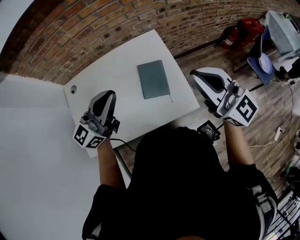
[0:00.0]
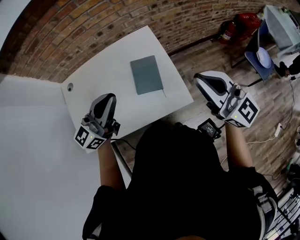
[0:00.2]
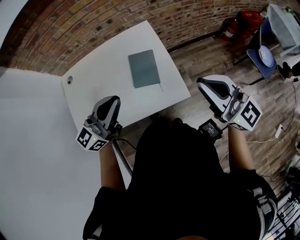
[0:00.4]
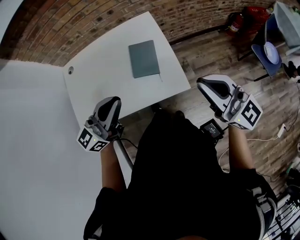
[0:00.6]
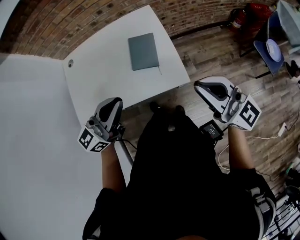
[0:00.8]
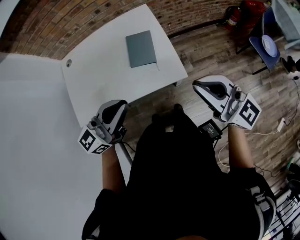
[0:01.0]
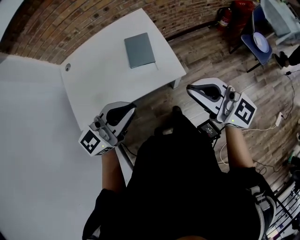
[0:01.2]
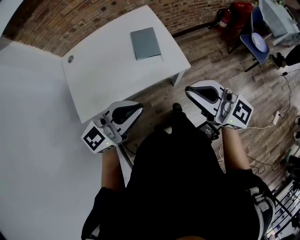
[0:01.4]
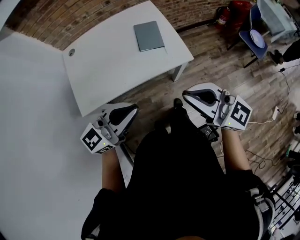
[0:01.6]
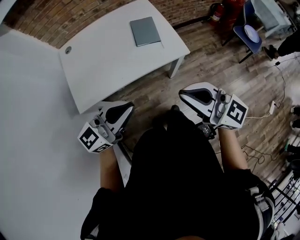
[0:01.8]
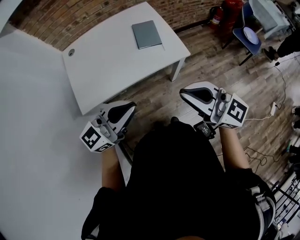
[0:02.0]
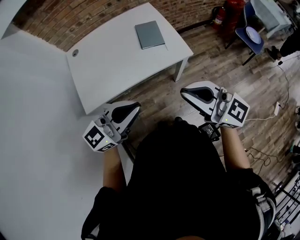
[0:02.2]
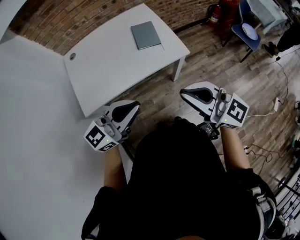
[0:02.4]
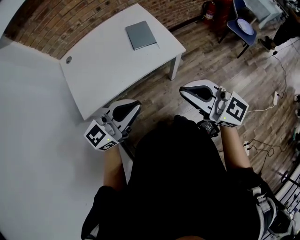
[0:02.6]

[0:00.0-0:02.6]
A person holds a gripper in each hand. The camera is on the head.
0:00.0 to 0:01.2: The left gripper goes about 25 cm backward and to the right. Meanwhile the right gripper shifts some 20 cm backward.
0:01.2 to 0:02.6: The two grippers go approximately 20 cm backward and to the left.

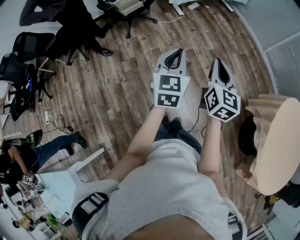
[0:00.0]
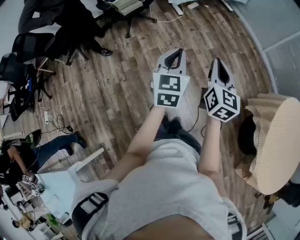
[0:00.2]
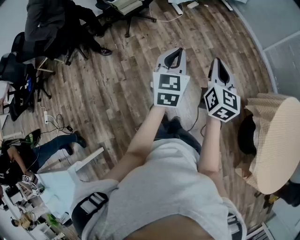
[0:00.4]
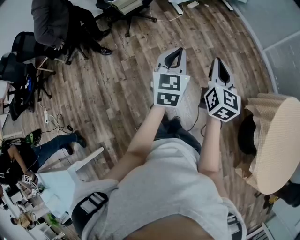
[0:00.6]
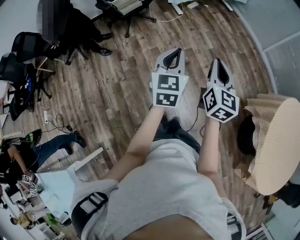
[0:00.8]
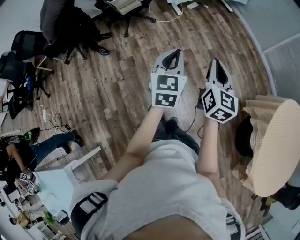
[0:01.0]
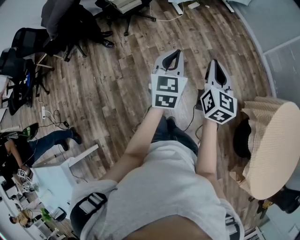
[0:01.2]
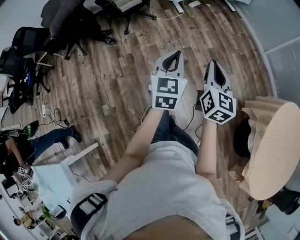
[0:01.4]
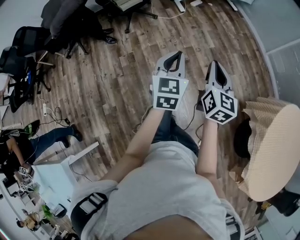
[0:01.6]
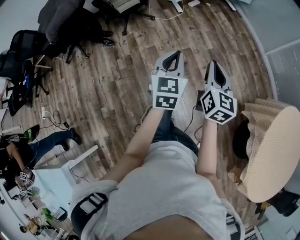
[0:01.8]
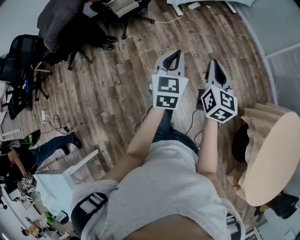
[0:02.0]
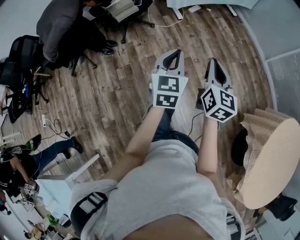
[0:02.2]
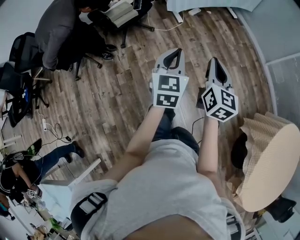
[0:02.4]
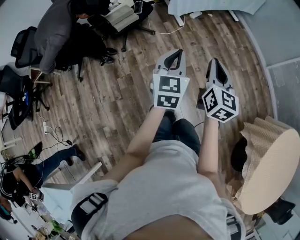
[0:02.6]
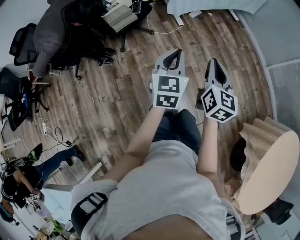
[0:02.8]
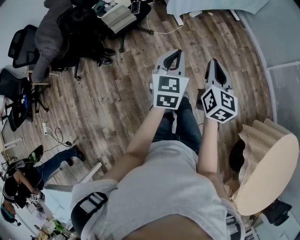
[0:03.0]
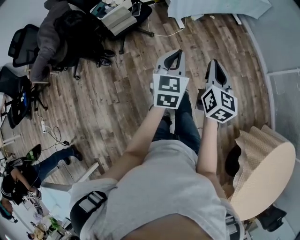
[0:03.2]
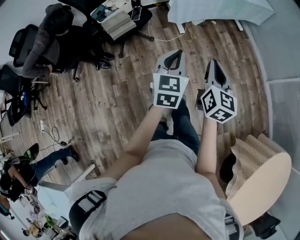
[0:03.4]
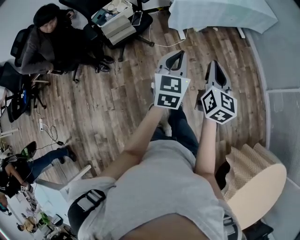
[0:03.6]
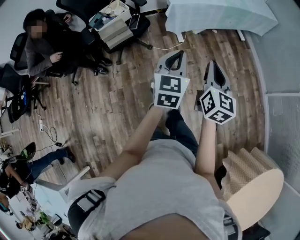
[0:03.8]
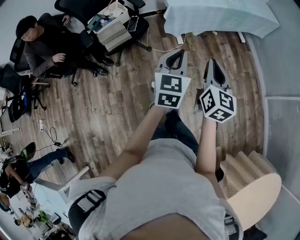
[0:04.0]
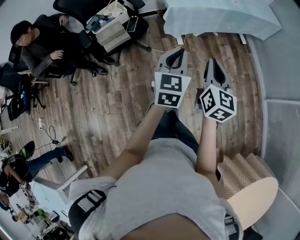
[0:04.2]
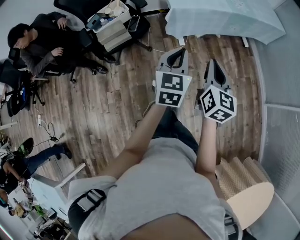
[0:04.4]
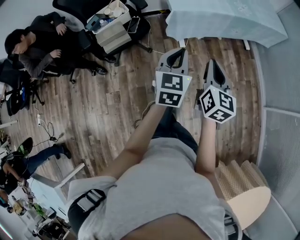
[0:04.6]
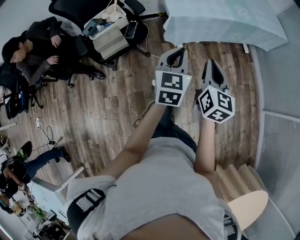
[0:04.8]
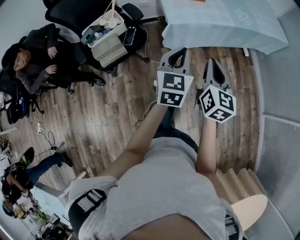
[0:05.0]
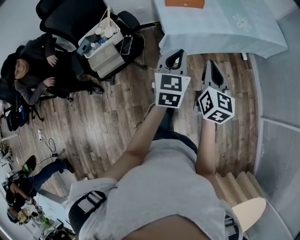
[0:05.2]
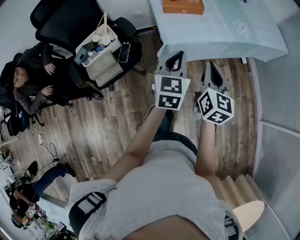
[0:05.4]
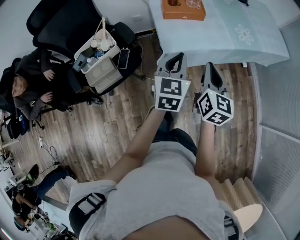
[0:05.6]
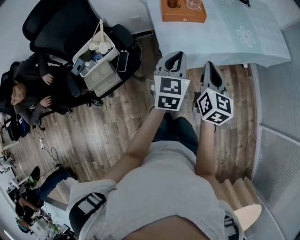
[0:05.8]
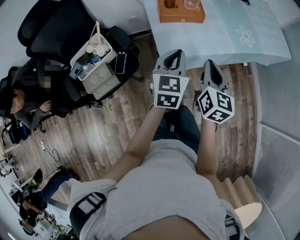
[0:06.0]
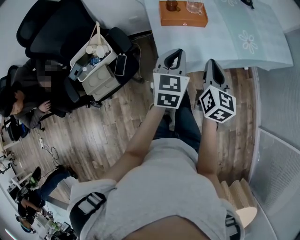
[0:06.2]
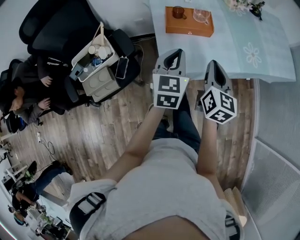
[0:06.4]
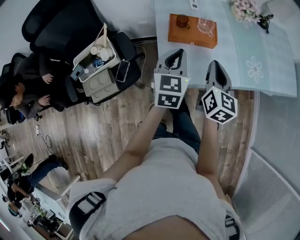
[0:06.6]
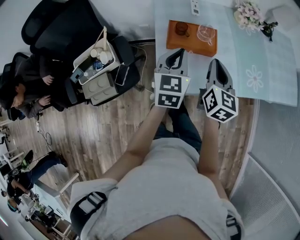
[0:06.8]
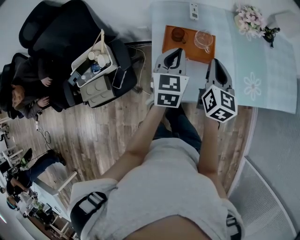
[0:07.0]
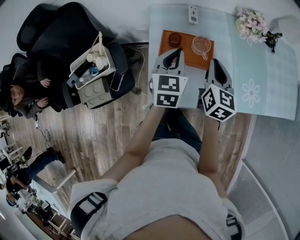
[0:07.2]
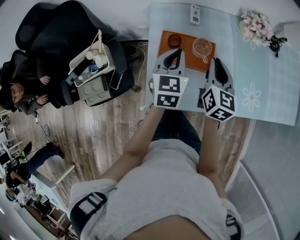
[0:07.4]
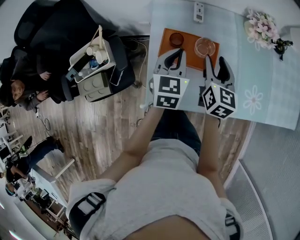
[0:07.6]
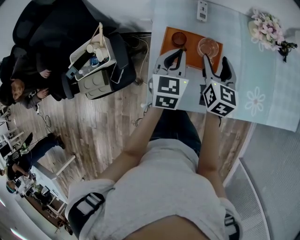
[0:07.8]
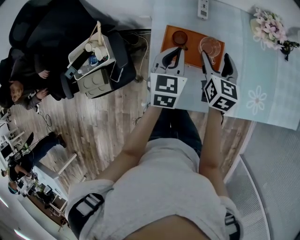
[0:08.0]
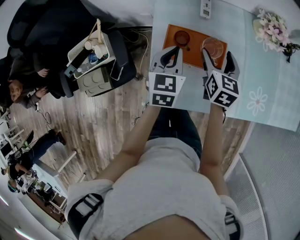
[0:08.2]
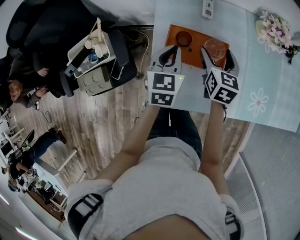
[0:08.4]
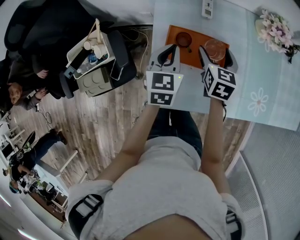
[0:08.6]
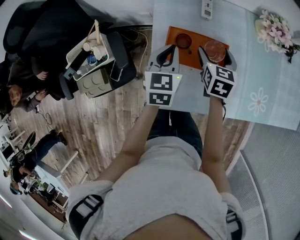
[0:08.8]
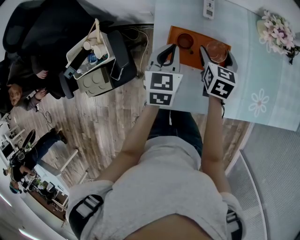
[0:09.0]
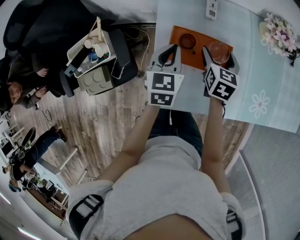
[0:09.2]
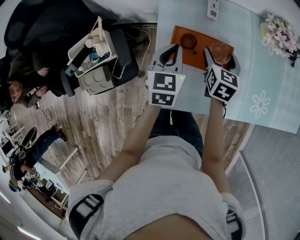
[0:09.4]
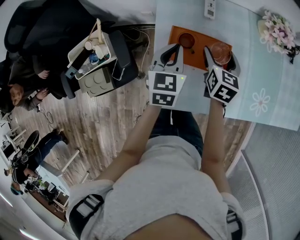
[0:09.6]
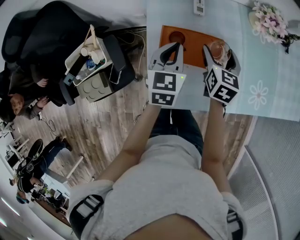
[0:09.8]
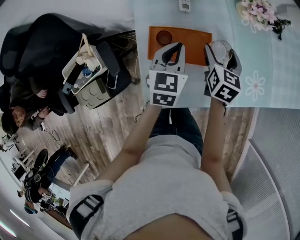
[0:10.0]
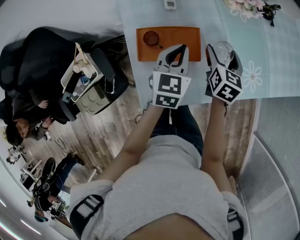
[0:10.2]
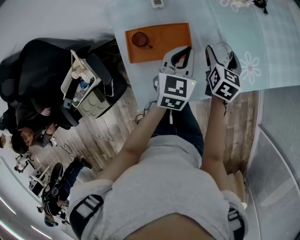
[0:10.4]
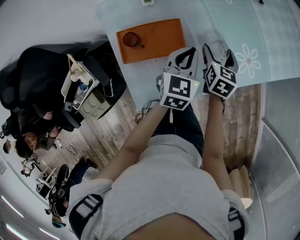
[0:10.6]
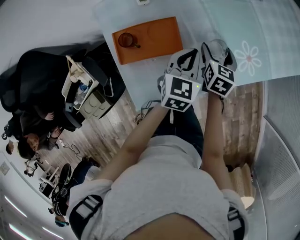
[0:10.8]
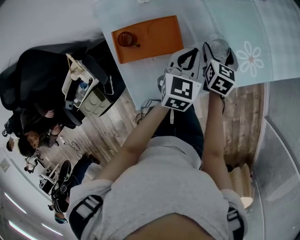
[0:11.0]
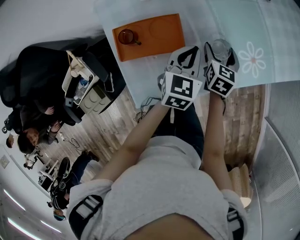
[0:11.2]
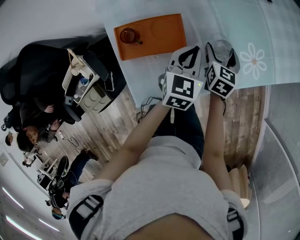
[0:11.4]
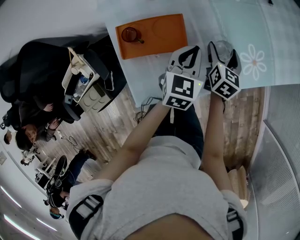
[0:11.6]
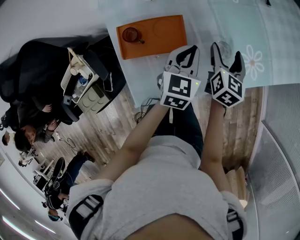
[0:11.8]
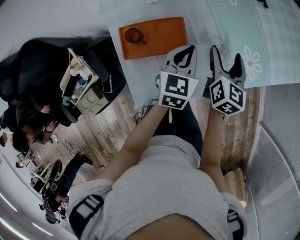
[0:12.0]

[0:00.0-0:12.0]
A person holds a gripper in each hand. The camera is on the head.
0:00.0 to 0:01.6: The left gripper ends up some 5 cm from where it was. Meanwhile the right gripper ends up some 5 cm from where it was.
0:01.6 to 0:03.0: Both grippers move forward, approximately 30 cm.
0:03.0 to 0:04.4: The grippers both shift forward by about 30 cm.
0:04.4 to 0:06.0: Both grippers are carried forward, some 40 cm.
0:06.0 to 0:07.6: The two grippers go about 35 cm forward. The right gripper opens up.
0:07.6 to 0:09.0: The left gripper is displaced to the left by approximately 5 cm, while the right gripper goes roughly 10 cm downward and forward, and opens.
0:09.0 to 0:10.4: Both grippers move to the right, roughly 20 cm. The right gripper swivels about 20 degrees, while the left gripper rotates some 30 degrees.
0:10.4 to 0:12.0: The right gripper shifts by roughly 5 cm.

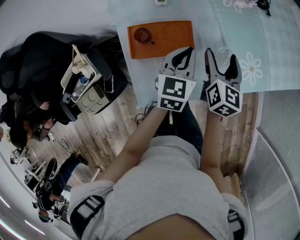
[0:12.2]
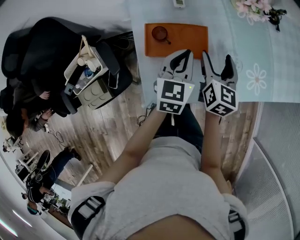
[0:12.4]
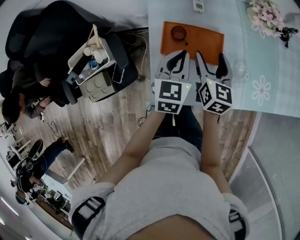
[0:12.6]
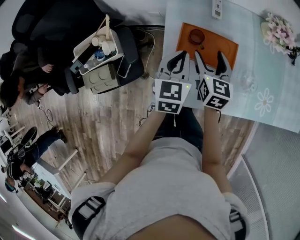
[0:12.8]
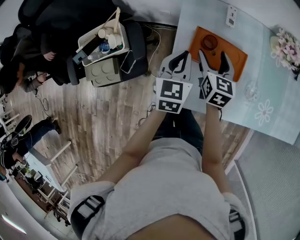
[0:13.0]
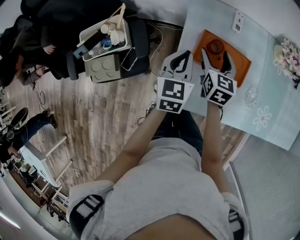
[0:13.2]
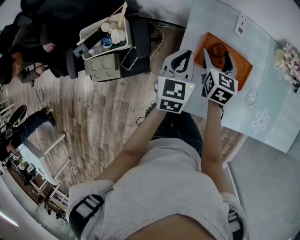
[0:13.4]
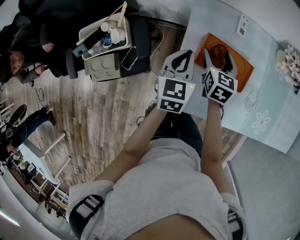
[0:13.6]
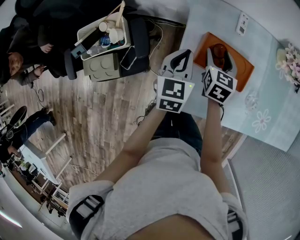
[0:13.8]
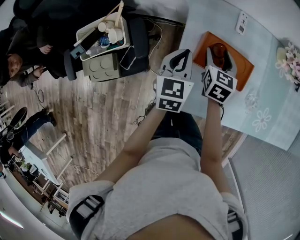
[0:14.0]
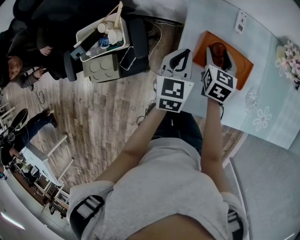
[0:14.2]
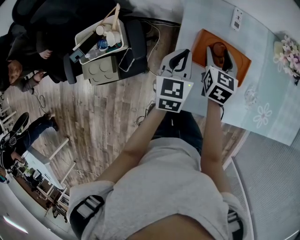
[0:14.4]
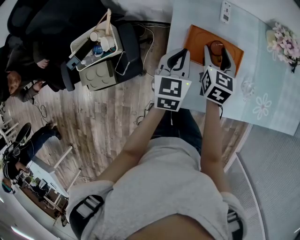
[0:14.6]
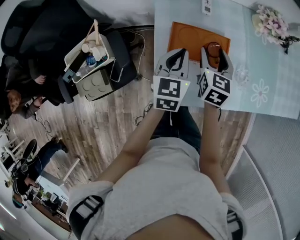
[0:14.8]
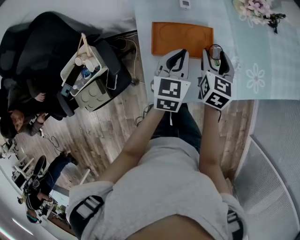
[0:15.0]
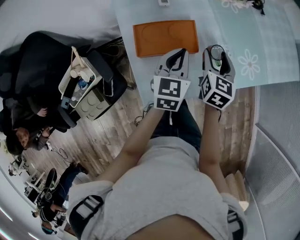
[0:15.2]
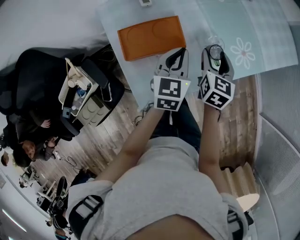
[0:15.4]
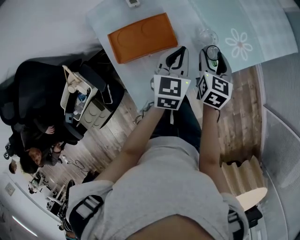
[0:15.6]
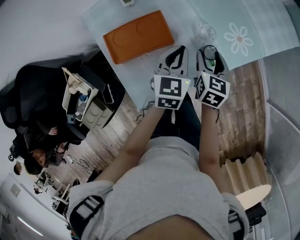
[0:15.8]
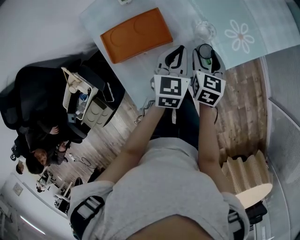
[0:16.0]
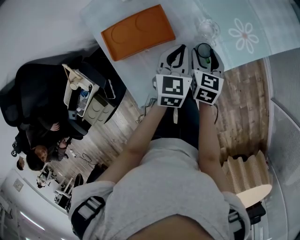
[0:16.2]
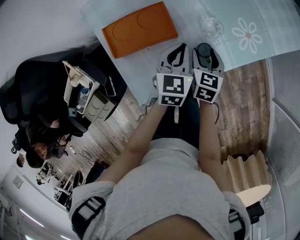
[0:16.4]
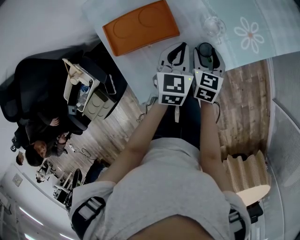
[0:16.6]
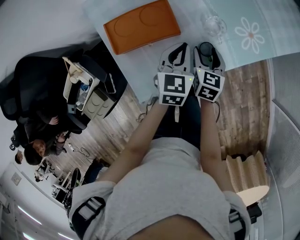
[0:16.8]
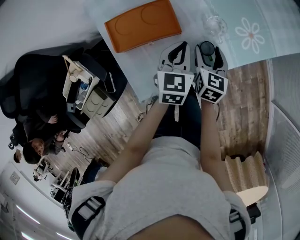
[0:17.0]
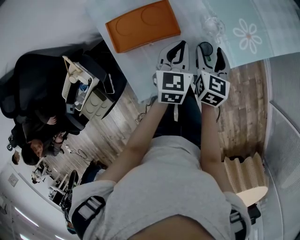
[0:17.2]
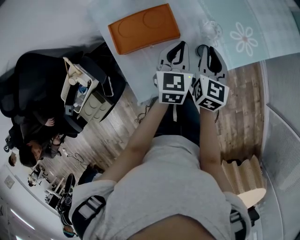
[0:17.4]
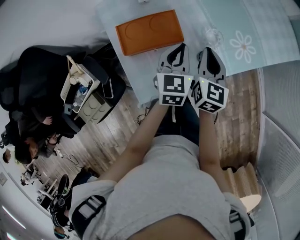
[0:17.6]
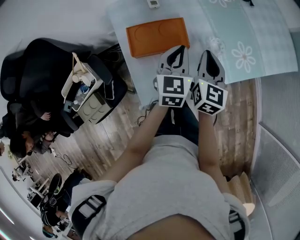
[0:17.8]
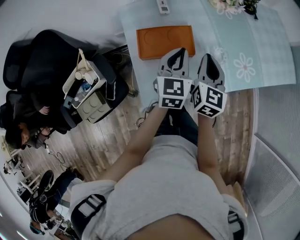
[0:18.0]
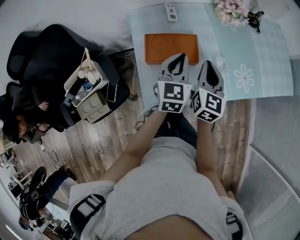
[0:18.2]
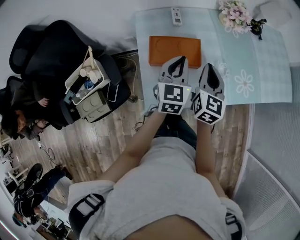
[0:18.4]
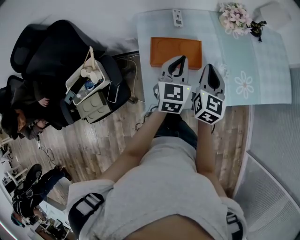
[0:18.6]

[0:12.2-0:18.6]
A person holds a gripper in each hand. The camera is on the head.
0:12.2 to 0:13.8: The left gripper changes place by roughly 25 cm, and turns by roughly 30 degrees. Meanwhile the right gripper ends up roughly 30 cm from where it was, and changes its angle by roughly 30 degrees.
0:13.8 to 0:15.4: The right gripper shifts by some 30 cm, and swivels roughly 40 degrees. The left gripper changes place by approximately 25 cm, and turns by approximately 40 degrees.
0:15.4 to 0:17.0: The two grippers go about 10 cm downward.
0:17.0 to 0:18.6: The two grippers go some 20 cm upward and to the left. The left gripper rotates about 20 degrees; the right gripper turns by roughly 20 degrees, and closes up.

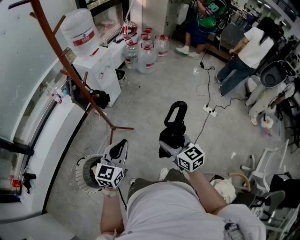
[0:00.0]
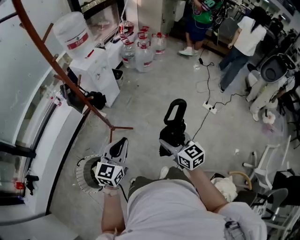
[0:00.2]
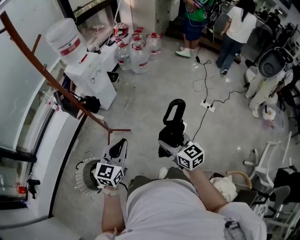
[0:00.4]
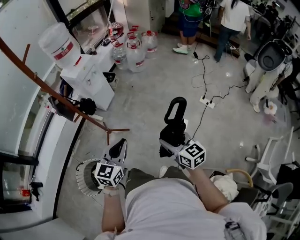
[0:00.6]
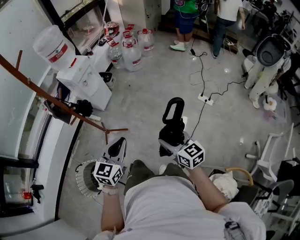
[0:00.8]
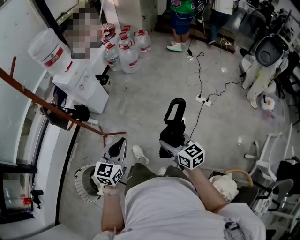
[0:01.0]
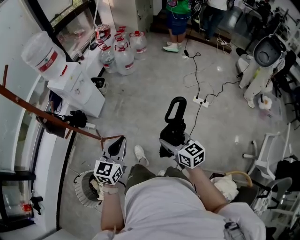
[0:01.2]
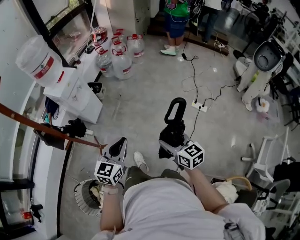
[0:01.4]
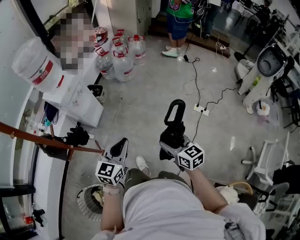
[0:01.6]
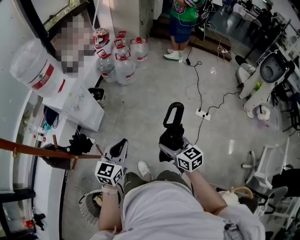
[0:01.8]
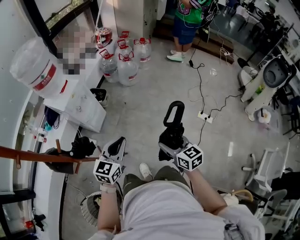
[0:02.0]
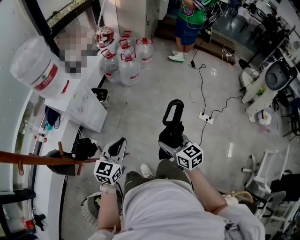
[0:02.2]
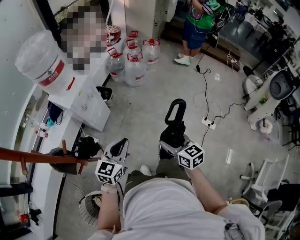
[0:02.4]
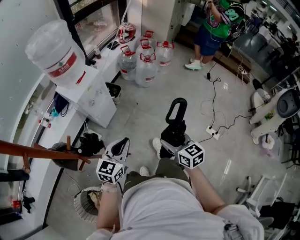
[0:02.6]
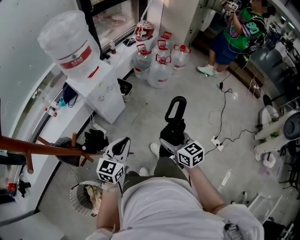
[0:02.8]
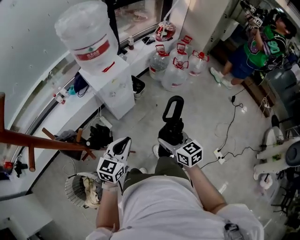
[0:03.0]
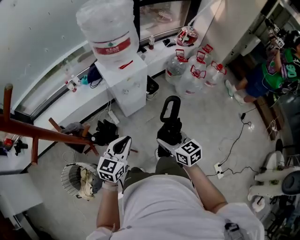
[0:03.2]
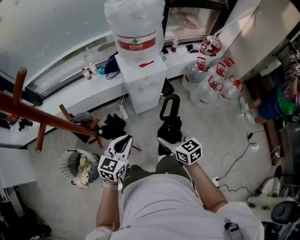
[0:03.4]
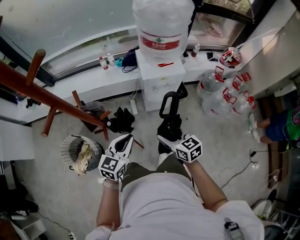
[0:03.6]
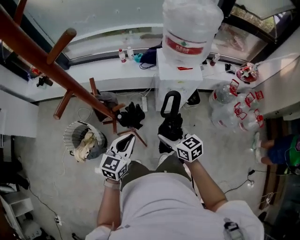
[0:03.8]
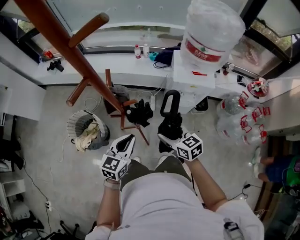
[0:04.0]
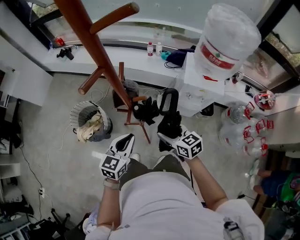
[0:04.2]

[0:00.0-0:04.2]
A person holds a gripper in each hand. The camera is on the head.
0:00.0 to 0:01.4: The grippers both shift forward and to the right by approximately 25 cm.
0:01.4 to 0:02.8: The two grippers go approximately 30 cm forward and to the left.
0:02.8 to 0:04.2: The right gripper moves approximately 25 cm, and turns by approximately 70 degrees, while the left gripper moves about 15 cm, and changes its angle by about 70 degrees.
